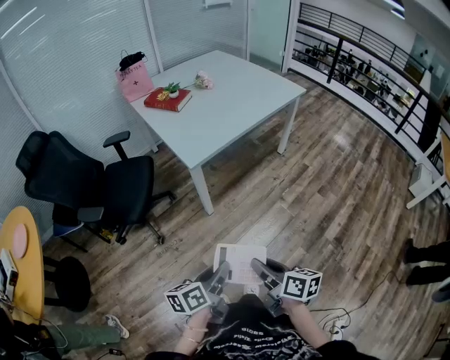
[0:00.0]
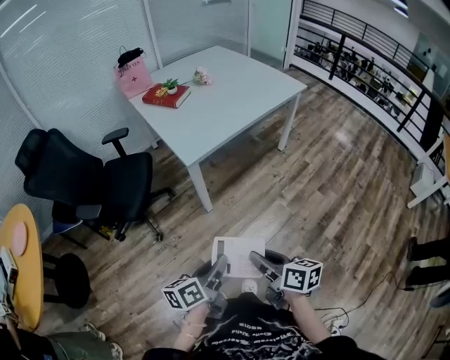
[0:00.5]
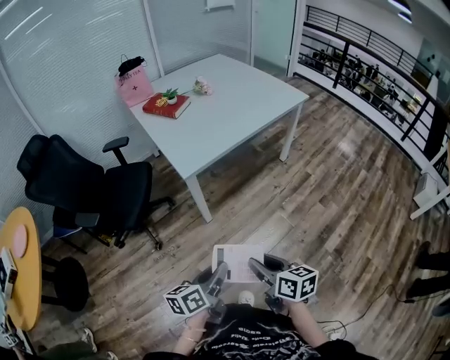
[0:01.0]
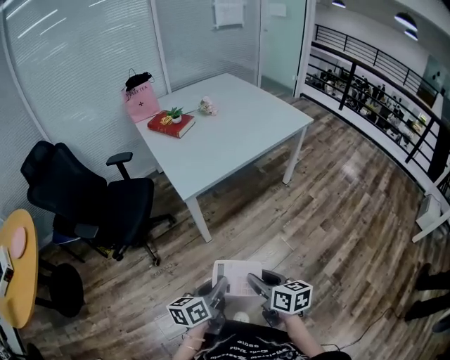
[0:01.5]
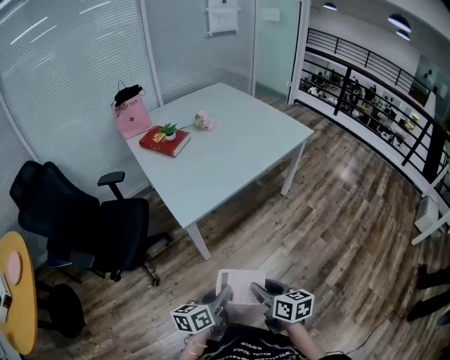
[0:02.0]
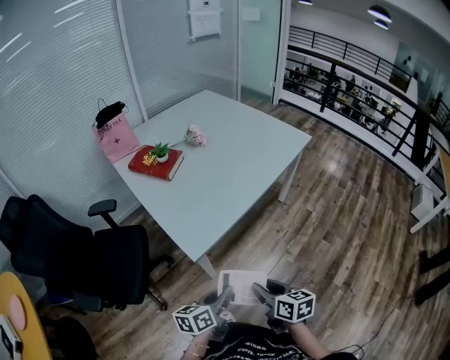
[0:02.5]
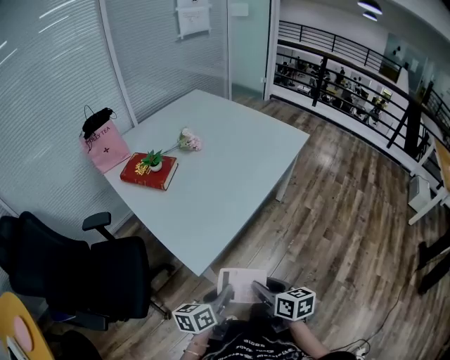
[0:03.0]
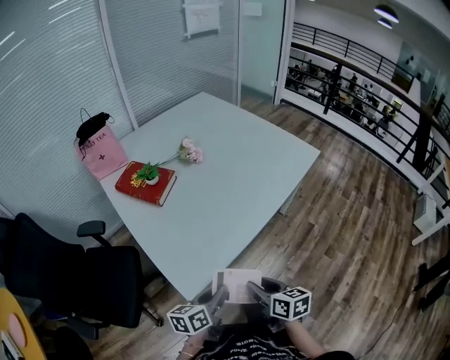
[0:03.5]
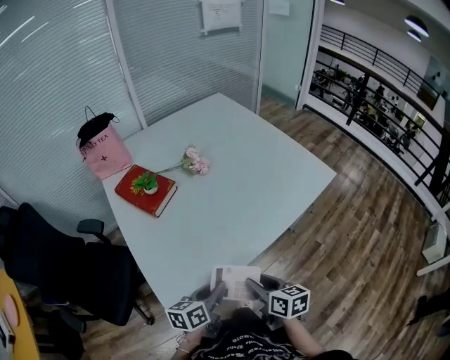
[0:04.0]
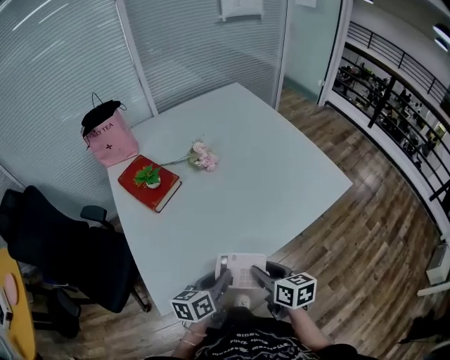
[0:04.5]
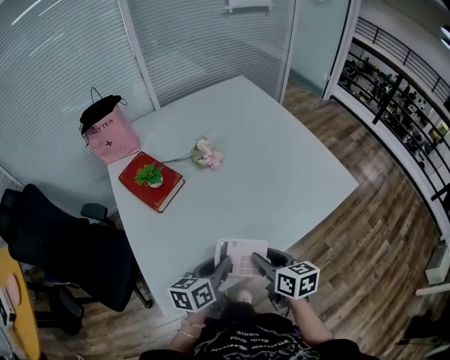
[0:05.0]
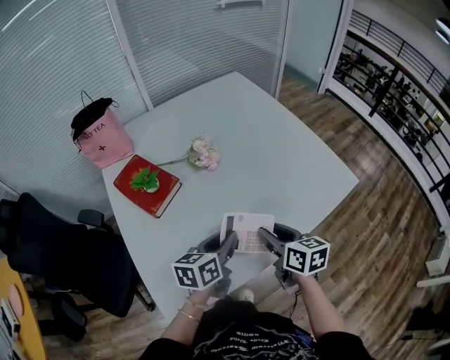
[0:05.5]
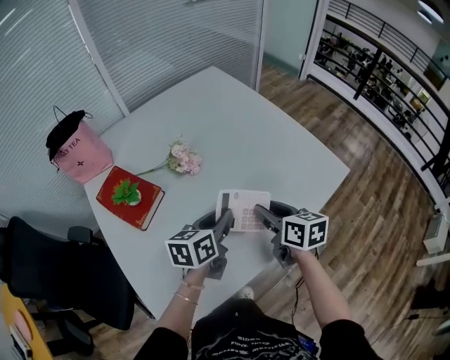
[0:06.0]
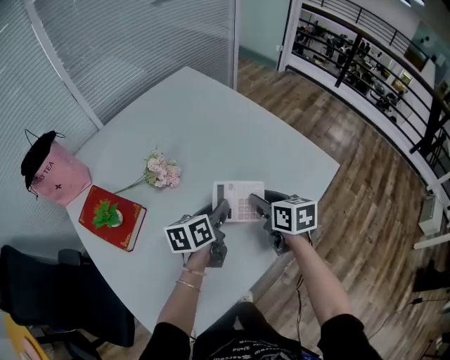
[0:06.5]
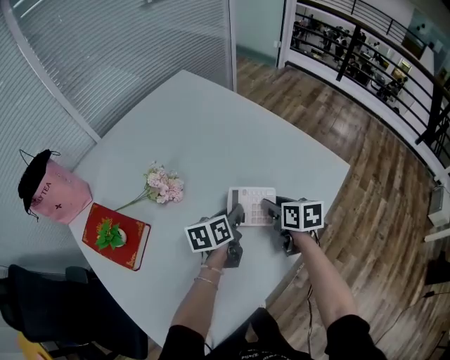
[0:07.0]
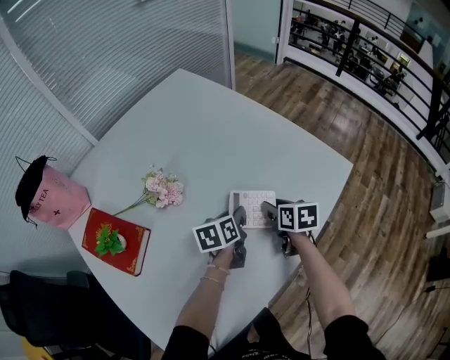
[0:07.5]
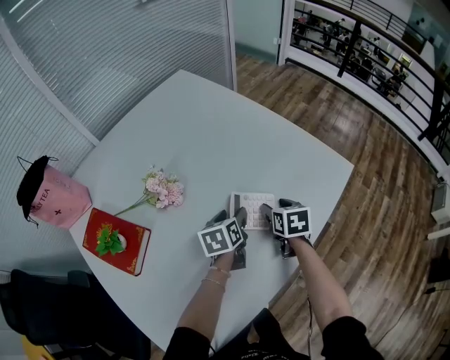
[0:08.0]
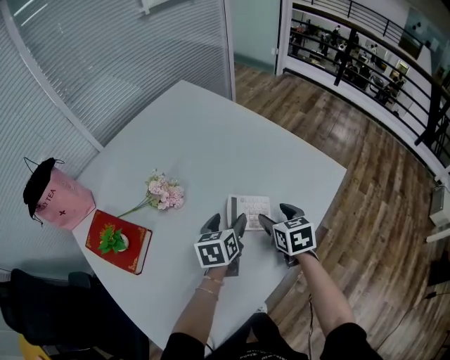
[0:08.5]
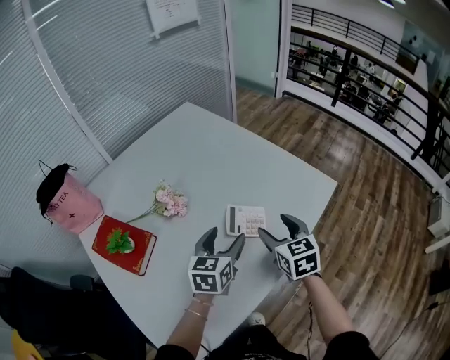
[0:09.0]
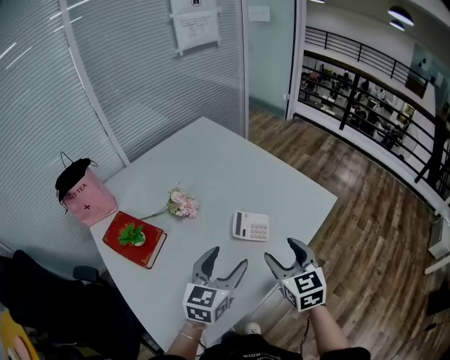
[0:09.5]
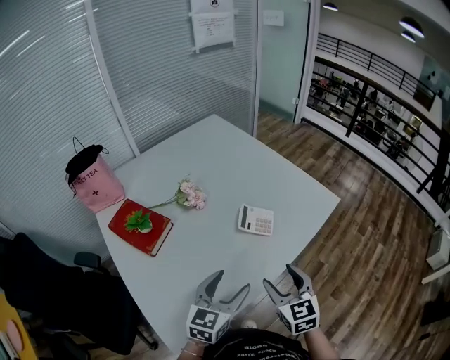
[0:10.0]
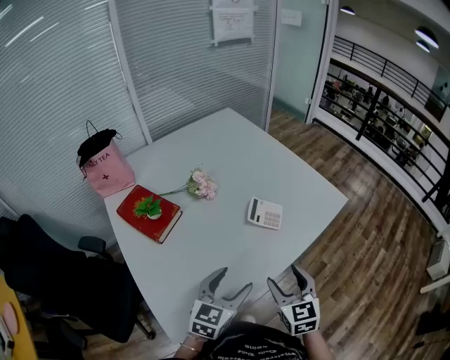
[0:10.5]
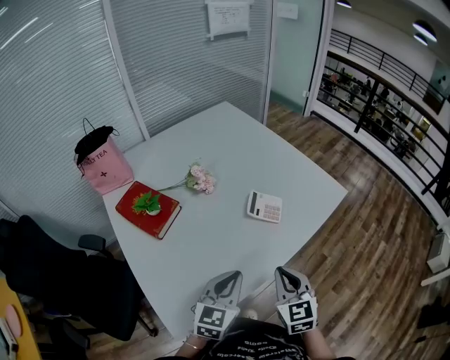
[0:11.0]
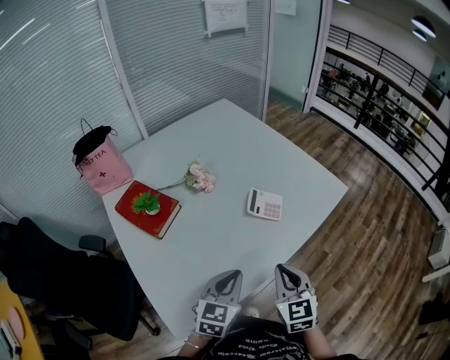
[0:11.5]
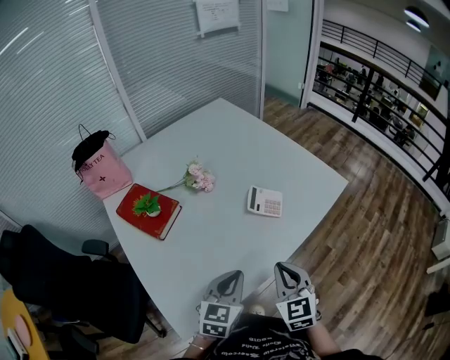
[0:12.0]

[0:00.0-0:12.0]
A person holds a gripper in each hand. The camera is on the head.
0:00.0 to 0:02.0: Both grippers travel together forward, approximately 20 cm.
0:02.0 to 0:04.0: Both grippers are carried forward, roughly 40 cm.
0:04.0 to 0:06.0: The two grippers go approximately 30 cm forward.
0:06.0 to 0:08.0: The right gripper shifts approximately 20 cm downward, forward and to the right, and swivels roughly 30 degrees; the left gripper heads forward and downward, covering approximately 20 cm, and opens its fingers.
0:08.0 to 0:10.0: Both grippers move backward and upward, roughly 35 cm. The left gripper changes its angle by about 40 degrees, while the right gripper changes its angle by some 40 degrees.
0:10.0 to 0:12.0: The left gripper moves roughly 5 cm, and closes its fingers. The right gripper closes its fingers.

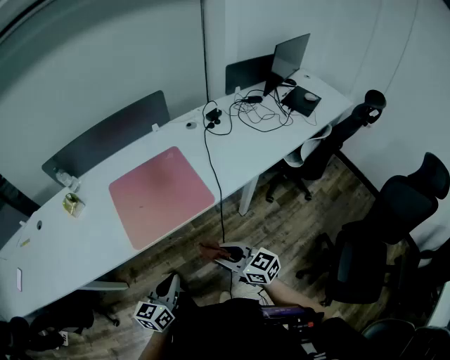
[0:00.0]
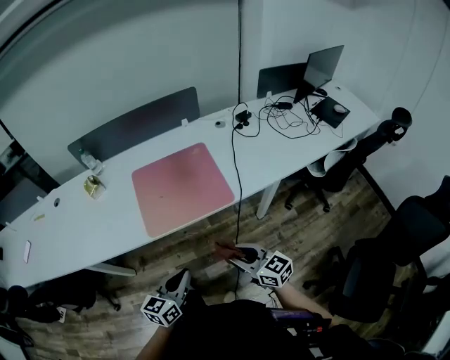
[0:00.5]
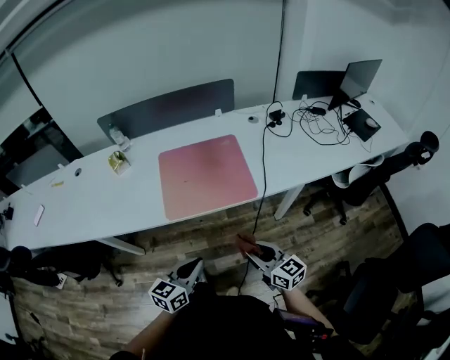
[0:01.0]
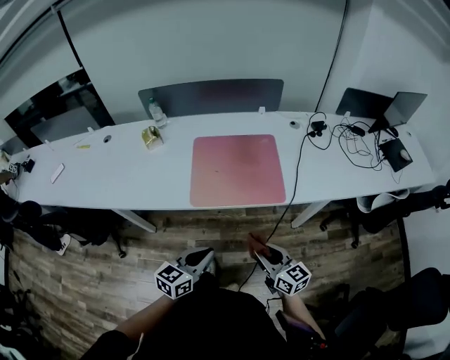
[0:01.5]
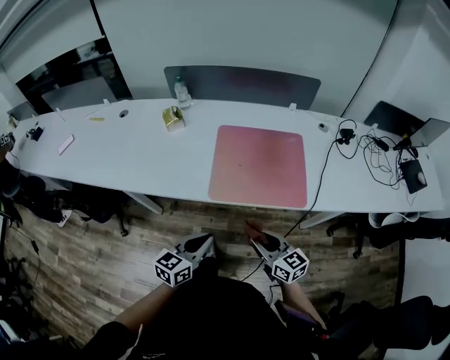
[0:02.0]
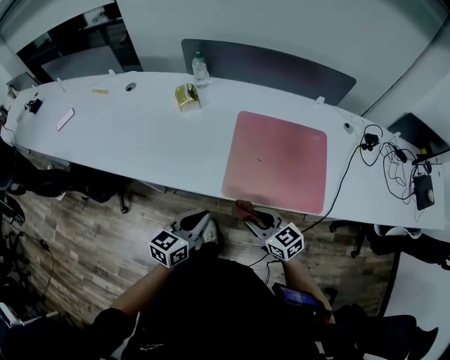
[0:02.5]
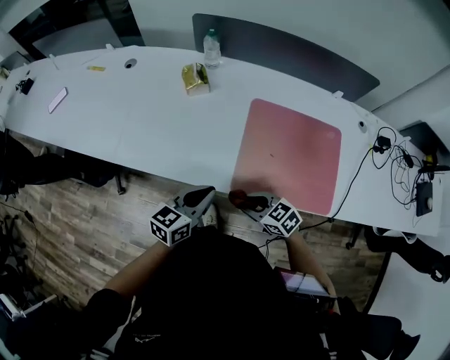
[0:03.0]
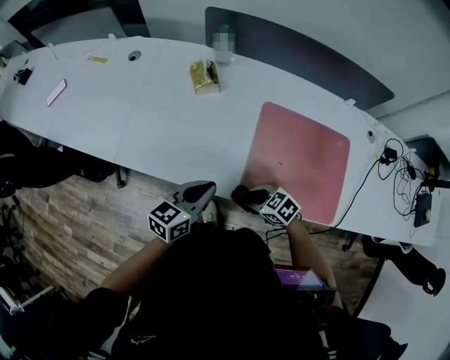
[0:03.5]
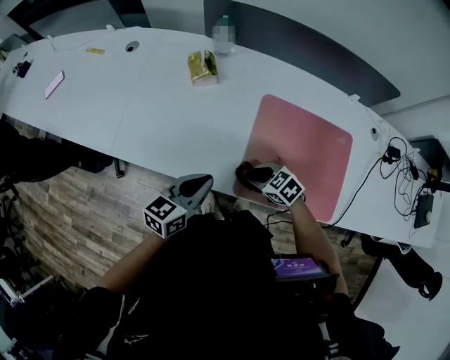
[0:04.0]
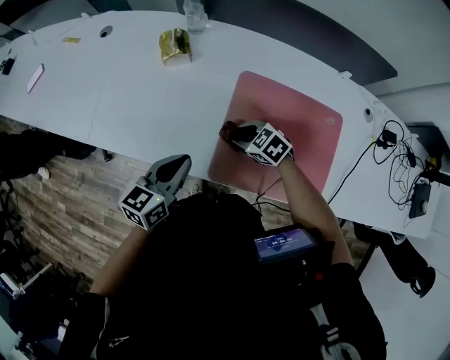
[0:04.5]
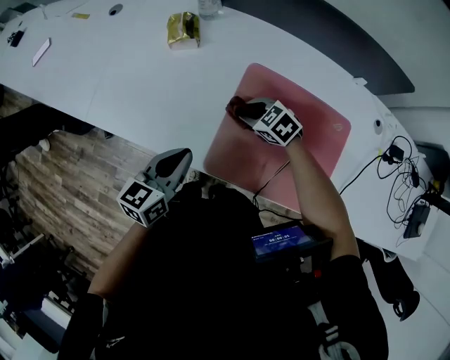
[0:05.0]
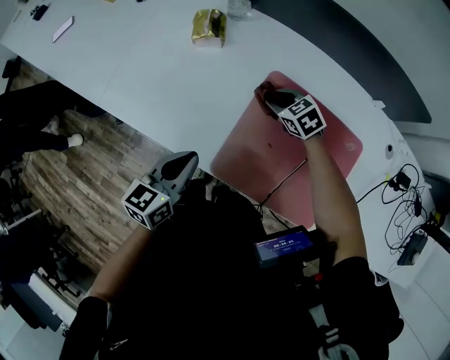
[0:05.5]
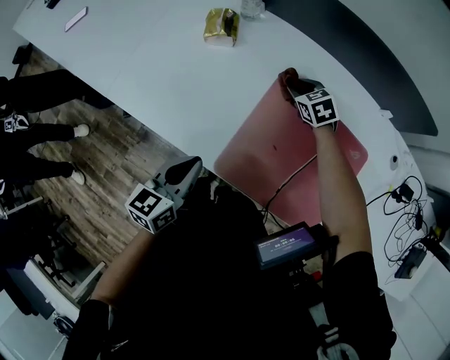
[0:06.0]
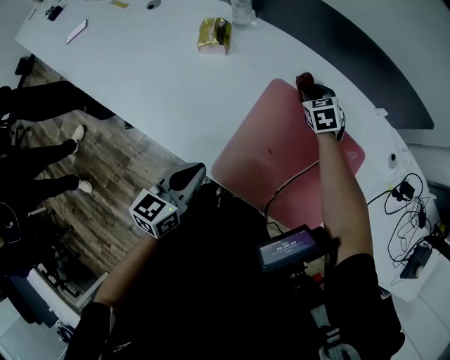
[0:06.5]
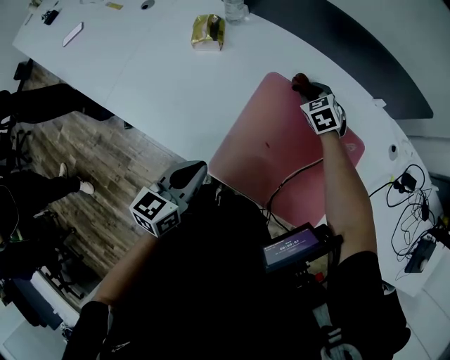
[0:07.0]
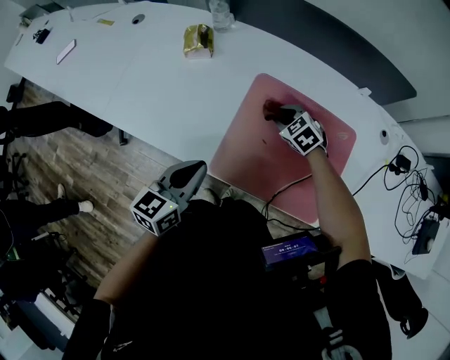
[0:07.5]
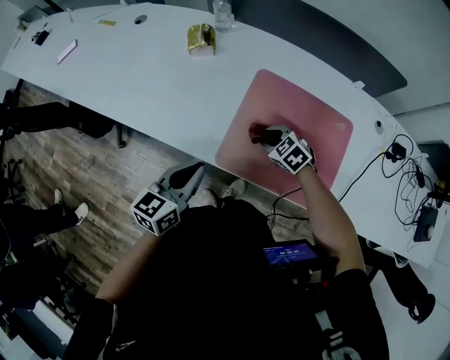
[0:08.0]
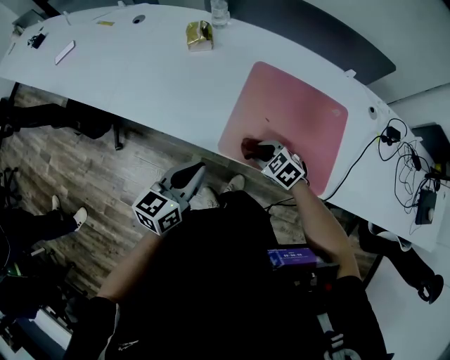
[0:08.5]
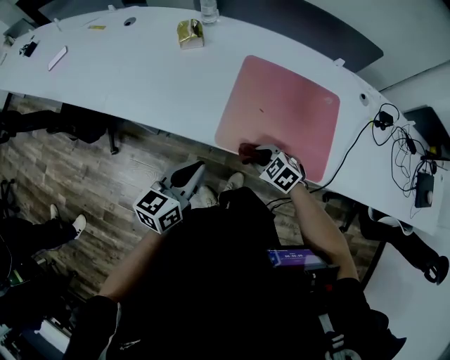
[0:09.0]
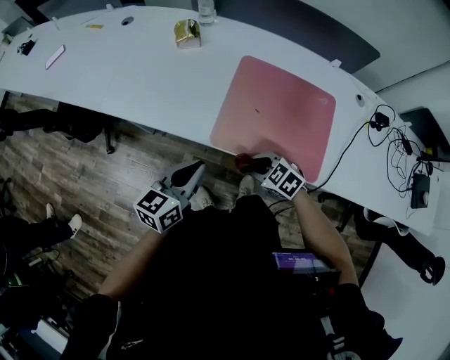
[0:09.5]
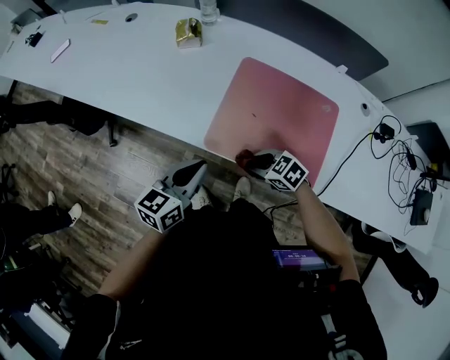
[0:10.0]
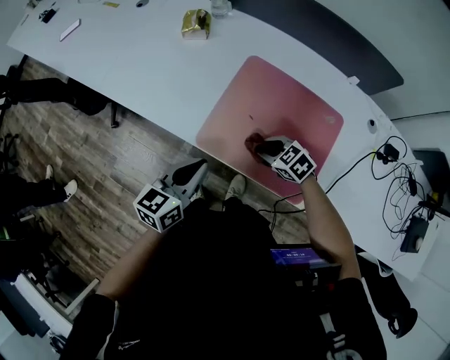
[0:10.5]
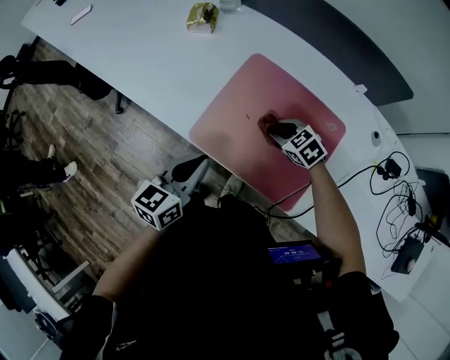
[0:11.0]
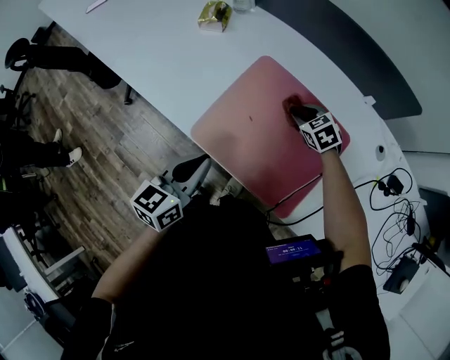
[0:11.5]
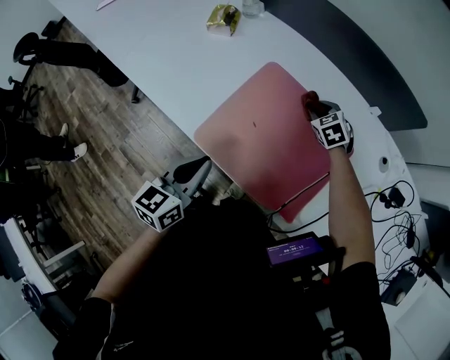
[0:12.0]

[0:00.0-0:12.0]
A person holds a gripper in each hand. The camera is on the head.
0:00.0 to 0:02.0: Both grippers move to the left, some 10 cm.
0:02.0 to 0:04.0: The left gripper moves about 25 cm. Meanwhile the right gripper shifts by about 30 cm, and tips its fingers downward by approximately 40 degrees.
0:04.0 to 0:06.0: The left gripper rotates roughly 20 degrees. The right gripper is displaced forward and to the right by some 30 cm.
0:06.0 to 0:08.0: The left gripper moves backward, some 5 cm, while the right gripper moves backward, roughly 25 cm.
0:08.0 to 0:10.0: The right gripper heads backward, covering some 15 cm; the left gripper shifts some 5 cm backward.
0:10.0 to 0:12.0: The left gripper moves to the right, approximately 10 cm, while the right gripper is displaced forward and to the right by approximately 35 cm, and turns by approximately 30 degrees.

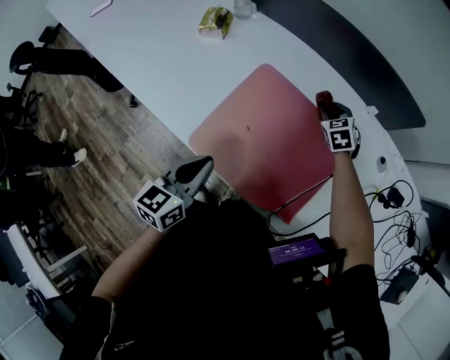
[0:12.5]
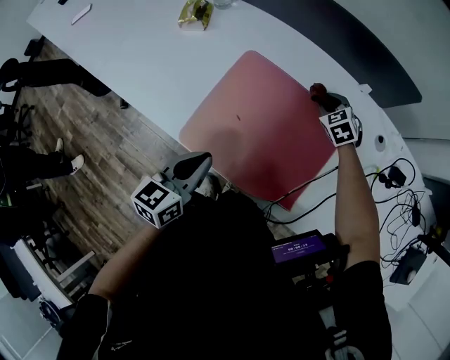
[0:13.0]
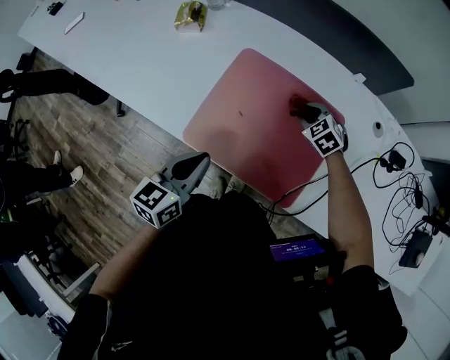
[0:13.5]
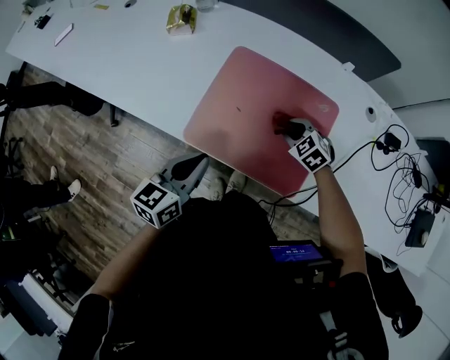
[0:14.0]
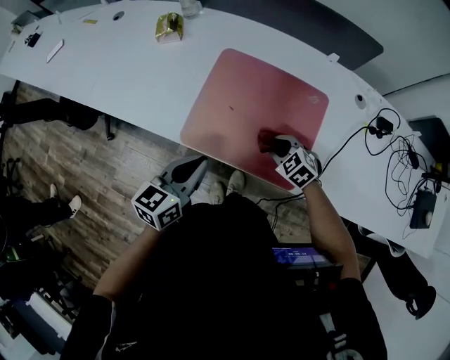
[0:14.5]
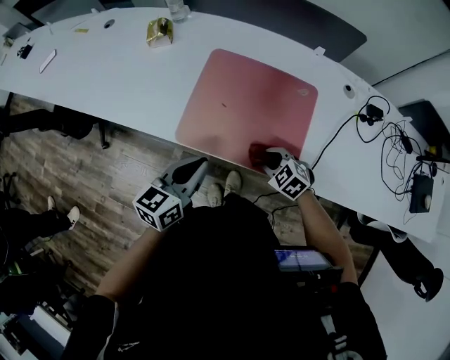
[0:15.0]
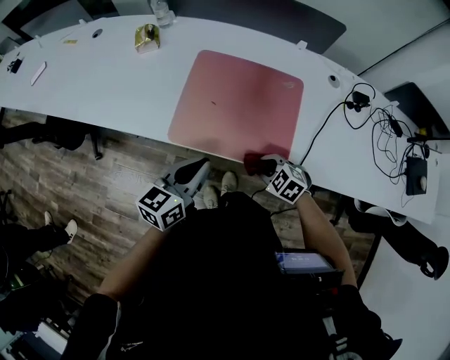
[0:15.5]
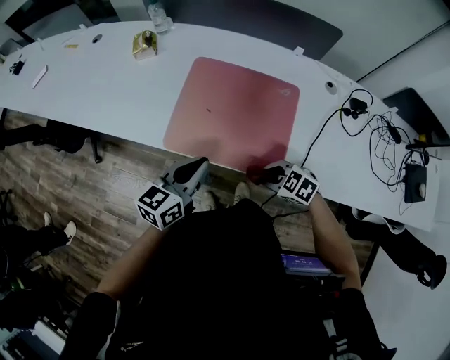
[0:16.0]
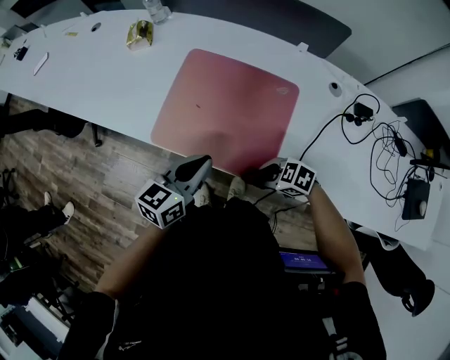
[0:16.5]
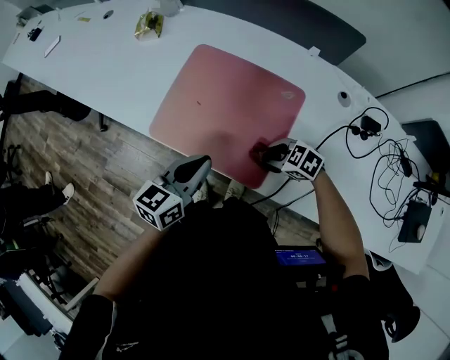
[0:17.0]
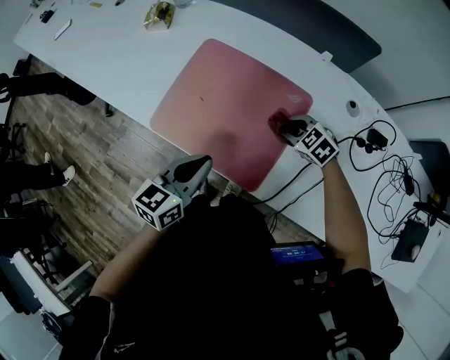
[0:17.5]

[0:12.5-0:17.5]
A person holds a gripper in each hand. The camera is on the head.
0:12.5 to 0:15.0: The right gripper goes some 35 cm backward. Meanwhile the left gripper is displaced backward by about 5 cm, and turns by about 20 degrees.
0:15.0 to 0:17.5: The left gripper changes place by roughly 15 cm. The right gripper ends up some 20 cm from where it was.
